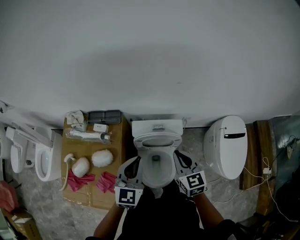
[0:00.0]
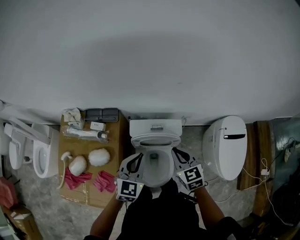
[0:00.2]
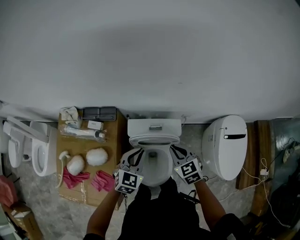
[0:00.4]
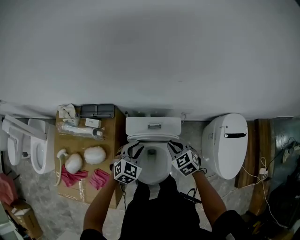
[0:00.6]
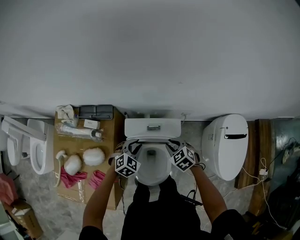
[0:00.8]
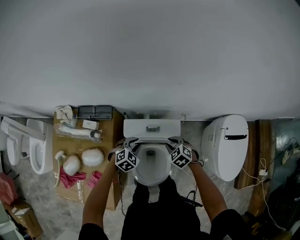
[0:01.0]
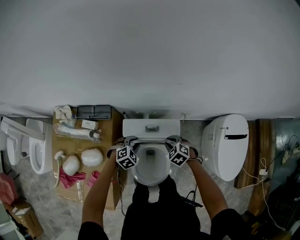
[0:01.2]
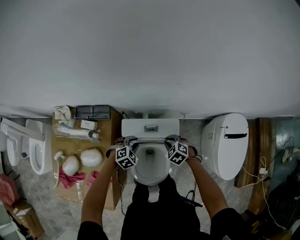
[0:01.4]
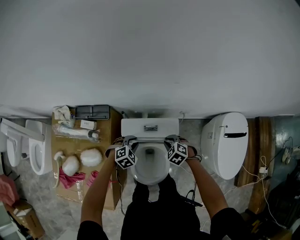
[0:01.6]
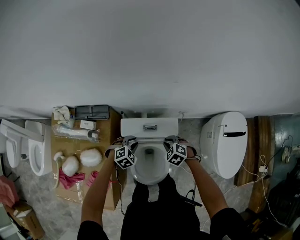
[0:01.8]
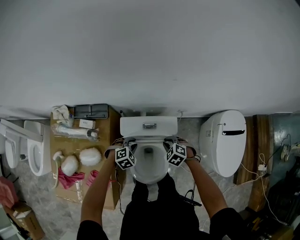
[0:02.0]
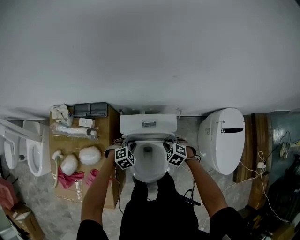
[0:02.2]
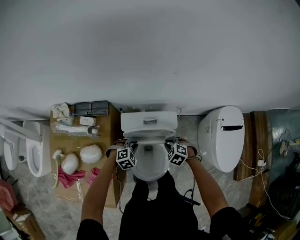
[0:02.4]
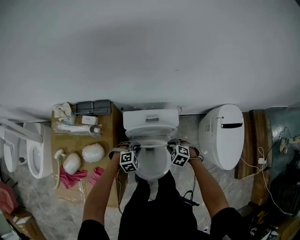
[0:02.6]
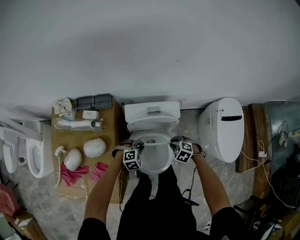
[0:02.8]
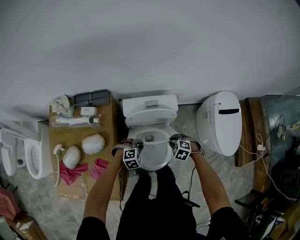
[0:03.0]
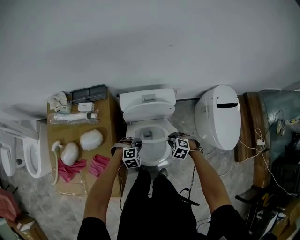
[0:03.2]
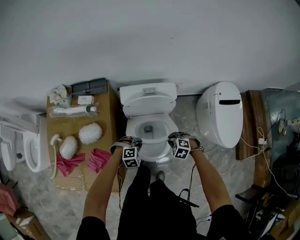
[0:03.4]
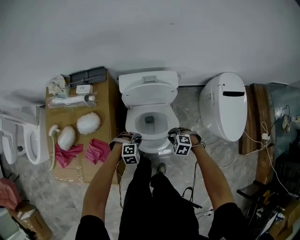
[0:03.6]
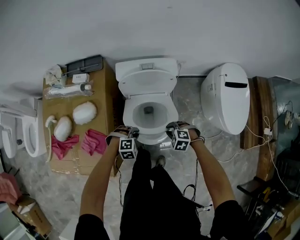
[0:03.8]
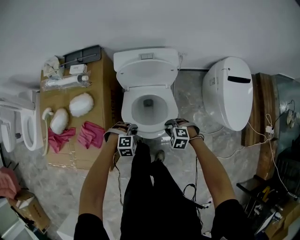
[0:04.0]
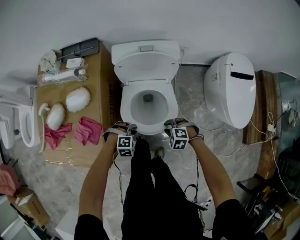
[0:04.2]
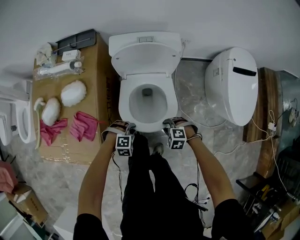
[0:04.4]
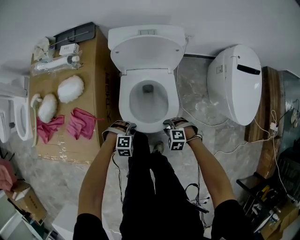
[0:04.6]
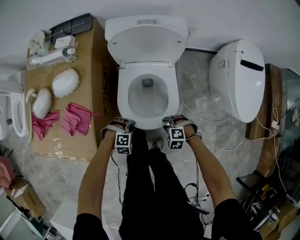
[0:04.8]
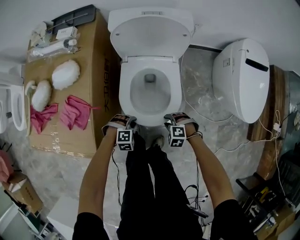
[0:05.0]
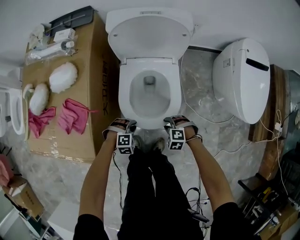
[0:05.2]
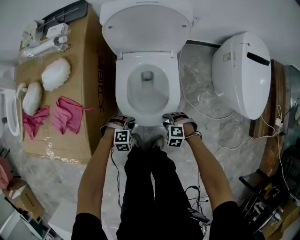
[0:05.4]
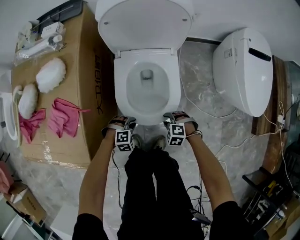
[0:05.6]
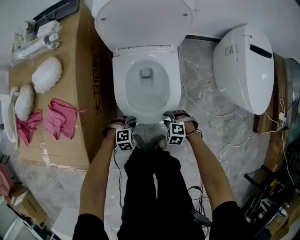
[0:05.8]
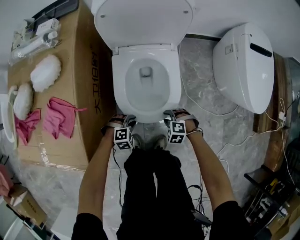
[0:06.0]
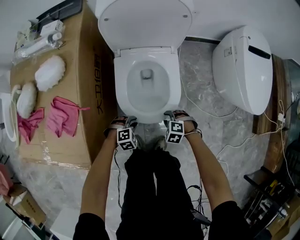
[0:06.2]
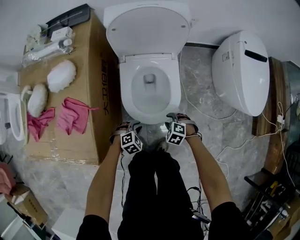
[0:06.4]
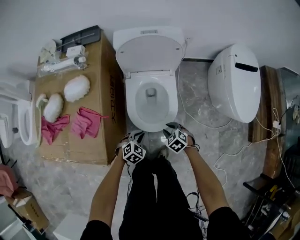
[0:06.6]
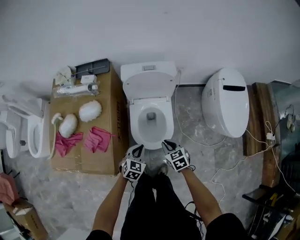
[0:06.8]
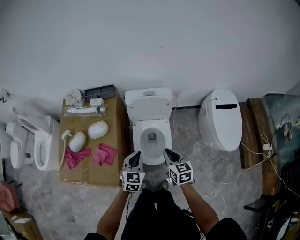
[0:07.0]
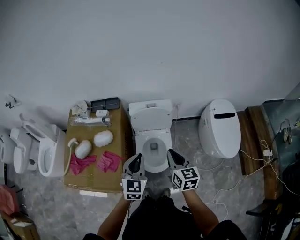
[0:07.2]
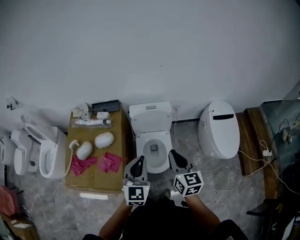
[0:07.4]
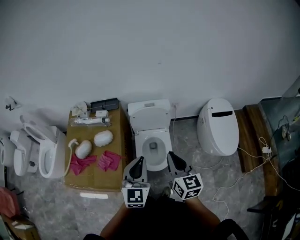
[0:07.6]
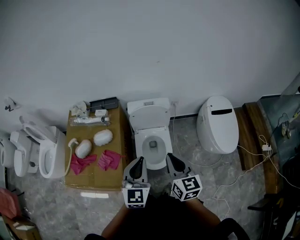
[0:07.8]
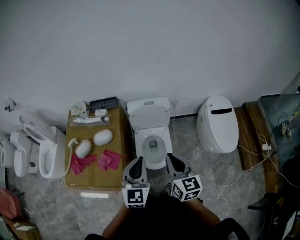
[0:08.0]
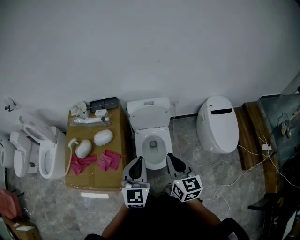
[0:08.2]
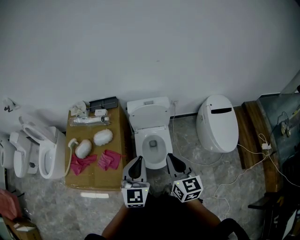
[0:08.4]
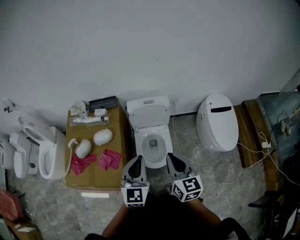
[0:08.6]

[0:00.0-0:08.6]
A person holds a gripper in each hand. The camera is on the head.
0:00.0 to 0:01.4: The left gripper is displaced downward and forward by some 35 cm, tilts its fingers approximately 40 degrees downward, and opens its fingers, while the right gripper is displaced downward by some 25 cm, and tilts its fingers about 40 degrees downward.
0:01.4 to 0:02.8: Both grippers travel together backward, some 15 cm.
0:02.8 to 0:04.4: The right gripper changes place by some 30 cm. Meanwhile the left gripper moves approximately 30 cm.
0:04.4 to 0:05.8: Both grippers move downward, about 20 cm.
0:05.8 to 0:07.2: The two grippers go roughly 70 cm upward. The right gripper tilts its fingers about 50 degrees upward, and closes up, while the left gripper tilts its fingers roughly 50 degrees upward, and closes.
0:07.2 to 0:08.6: The left gripper heads upward, covering approximately 5 cm. Meanwhile the right gripper goes approximately 10 cm upward and backward.

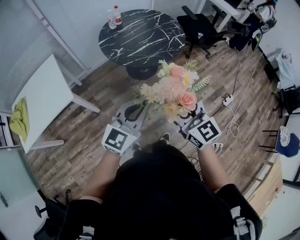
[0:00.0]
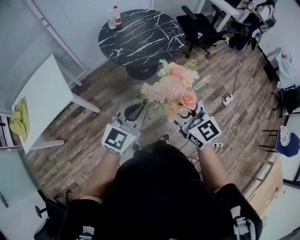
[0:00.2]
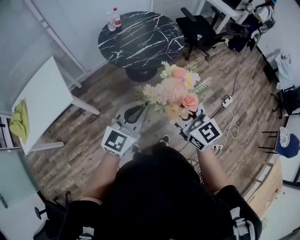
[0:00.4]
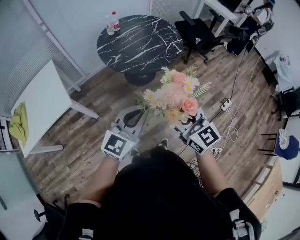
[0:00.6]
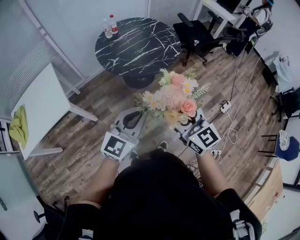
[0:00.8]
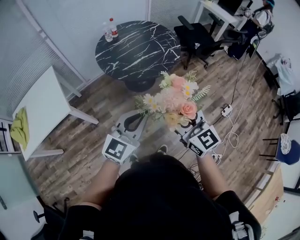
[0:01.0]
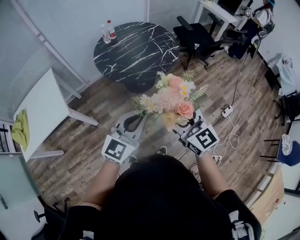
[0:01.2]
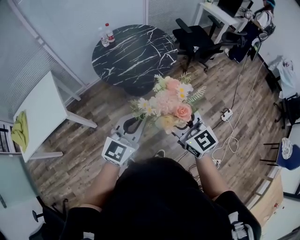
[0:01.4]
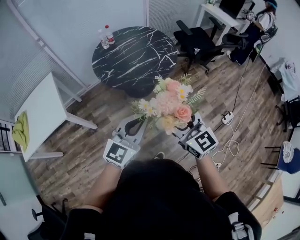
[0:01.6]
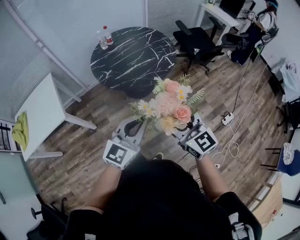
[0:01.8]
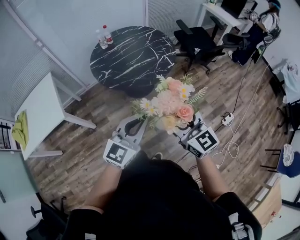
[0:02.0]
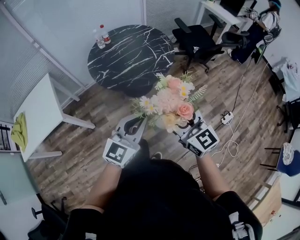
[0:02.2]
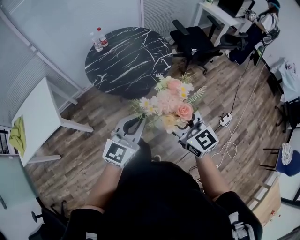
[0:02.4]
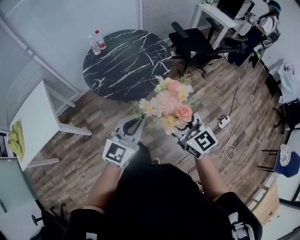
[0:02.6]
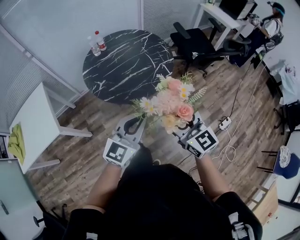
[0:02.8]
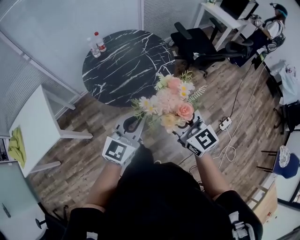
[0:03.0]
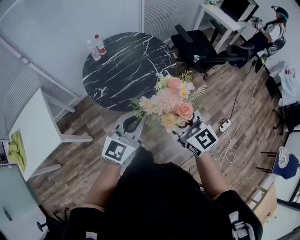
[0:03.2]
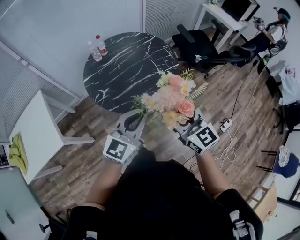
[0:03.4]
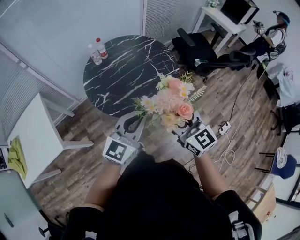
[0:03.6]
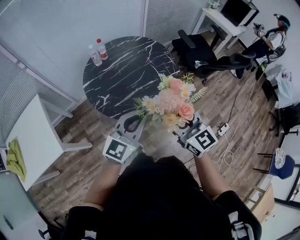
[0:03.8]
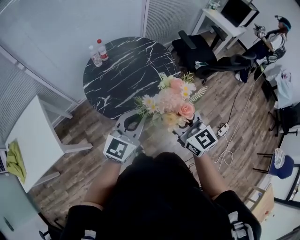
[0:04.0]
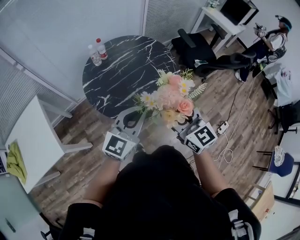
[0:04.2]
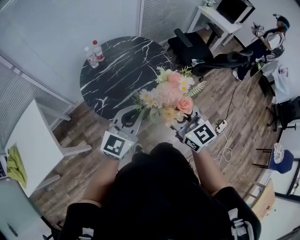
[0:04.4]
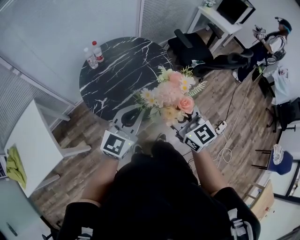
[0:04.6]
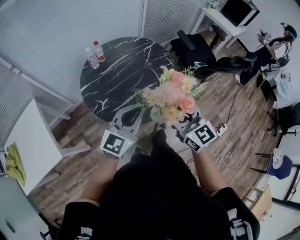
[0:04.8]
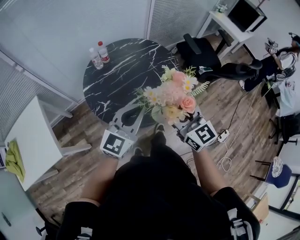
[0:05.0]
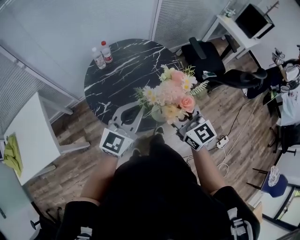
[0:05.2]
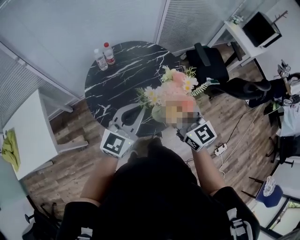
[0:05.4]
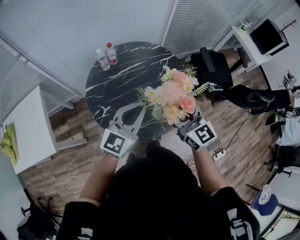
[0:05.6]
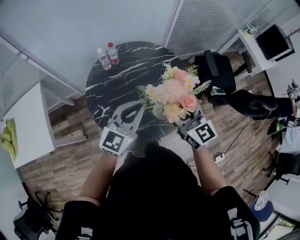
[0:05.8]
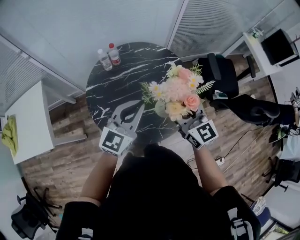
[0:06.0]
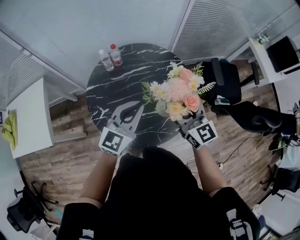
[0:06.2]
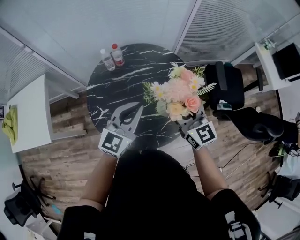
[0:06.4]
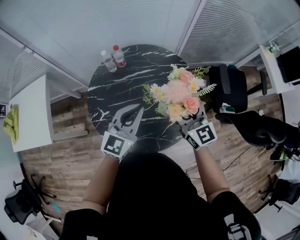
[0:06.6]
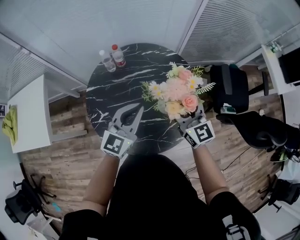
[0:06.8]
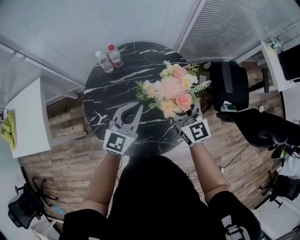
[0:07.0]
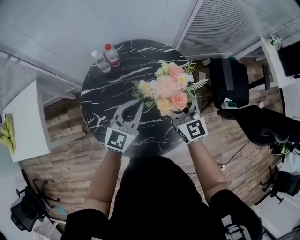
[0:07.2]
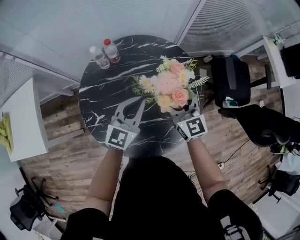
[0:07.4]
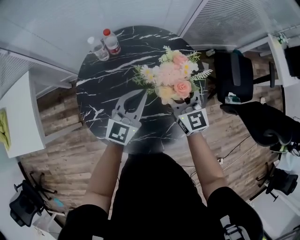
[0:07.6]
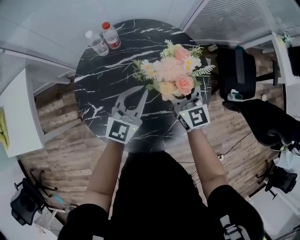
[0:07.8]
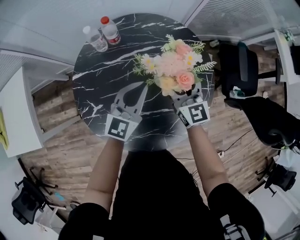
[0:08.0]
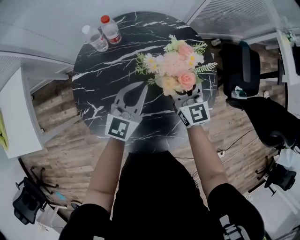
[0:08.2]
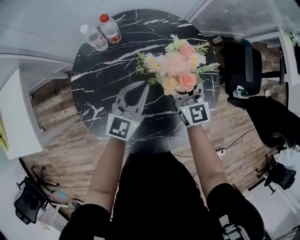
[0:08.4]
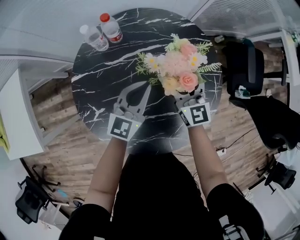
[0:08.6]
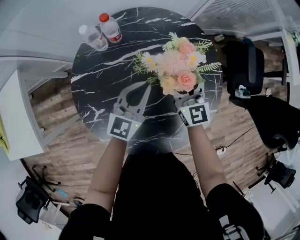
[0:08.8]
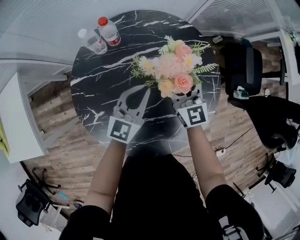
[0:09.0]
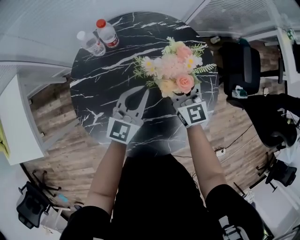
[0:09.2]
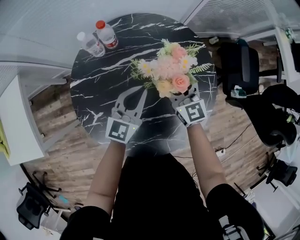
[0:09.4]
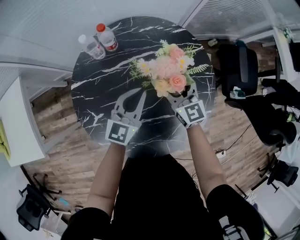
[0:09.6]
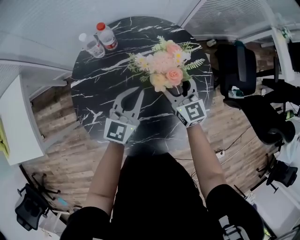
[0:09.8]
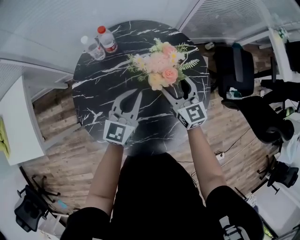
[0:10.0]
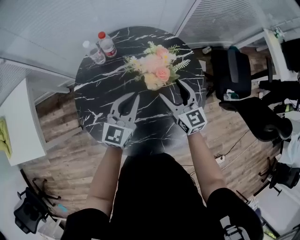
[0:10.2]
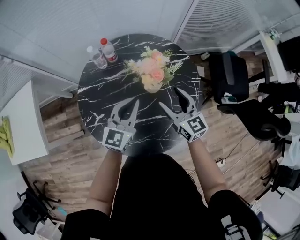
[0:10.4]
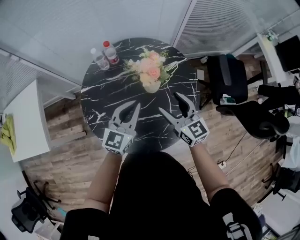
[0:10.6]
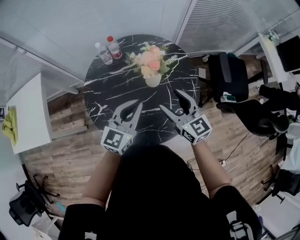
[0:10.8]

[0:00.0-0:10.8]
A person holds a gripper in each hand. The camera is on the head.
0:00.0 to 0:01.6: Both grippers move to the right and forward, some 15 cm.
0:01.6 to 0:03.0: The two grippers go approximately 20 cm forward.
0:03.0 to 0:04.6: Both grippers travel together forward and to the left, about 15 cm.
0:04.6 to 0:06.2: The grippers both shift forward by roughly 25 cm. The left gripper turns by about 20 degrees.
0:06.2 to 0:07.8: Both grippers move downward and forward, about 25 cm.
0:07.8 to 0:09.2: Both grippers travel together downward, roughly 5 cm.
0:09.2 to 0:10.8: The right gripper goes some 25 cm backward and upward. The left gripper shifts roughly 20 cm upward and backward.

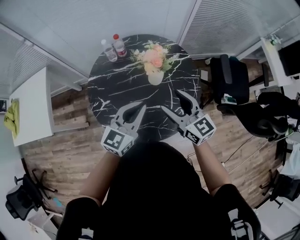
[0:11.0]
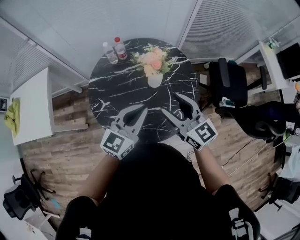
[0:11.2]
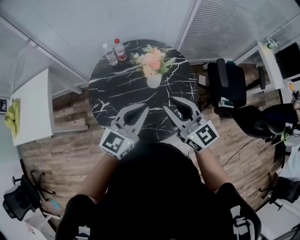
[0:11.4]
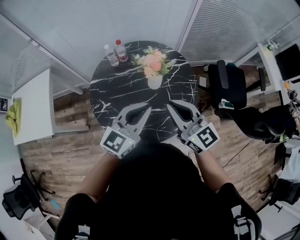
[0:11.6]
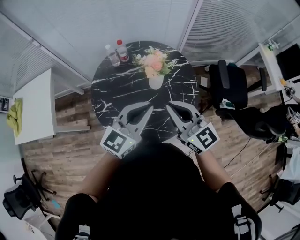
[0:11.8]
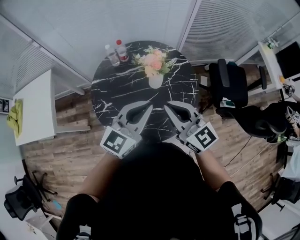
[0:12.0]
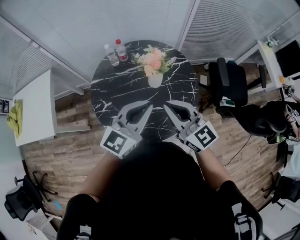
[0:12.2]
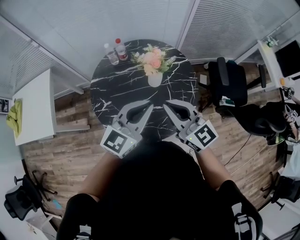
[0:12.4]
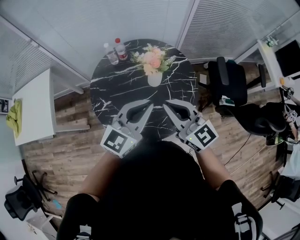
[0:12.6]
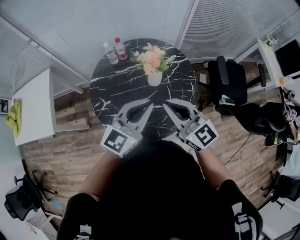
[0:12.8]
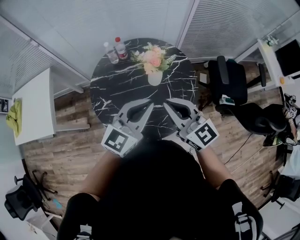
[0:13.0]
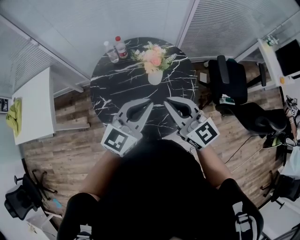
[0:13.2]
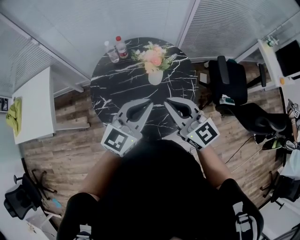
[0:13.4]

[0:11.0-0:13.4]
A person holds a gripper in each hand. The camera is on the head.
0:11.0 to 0:12.2: The grippers both shift upward by some 10 cm. The right gripper closes.
0:12.2 to 0:13.4: The two grippers keep their place.

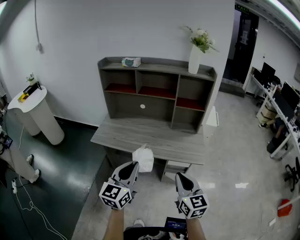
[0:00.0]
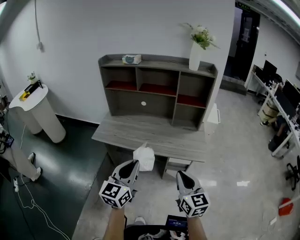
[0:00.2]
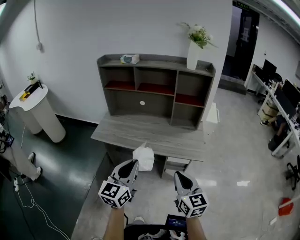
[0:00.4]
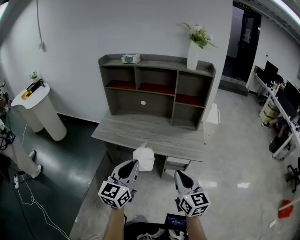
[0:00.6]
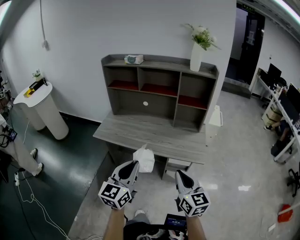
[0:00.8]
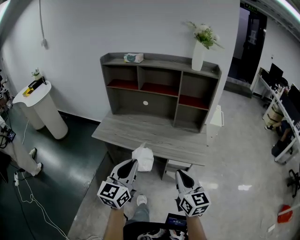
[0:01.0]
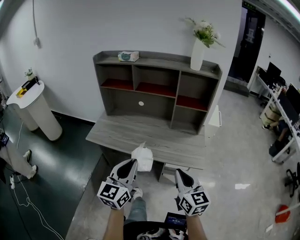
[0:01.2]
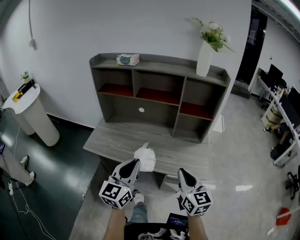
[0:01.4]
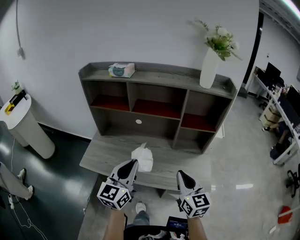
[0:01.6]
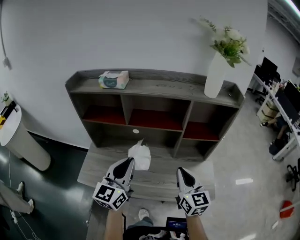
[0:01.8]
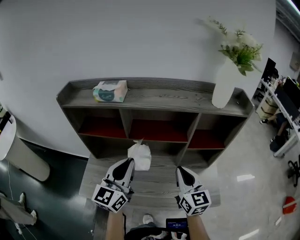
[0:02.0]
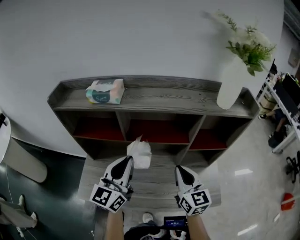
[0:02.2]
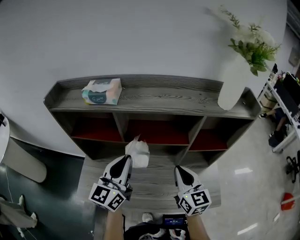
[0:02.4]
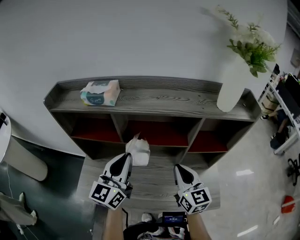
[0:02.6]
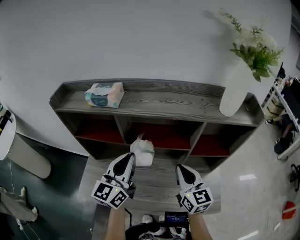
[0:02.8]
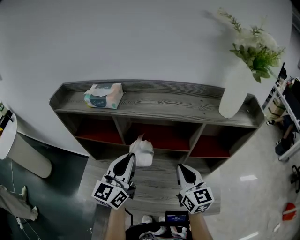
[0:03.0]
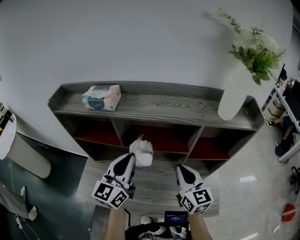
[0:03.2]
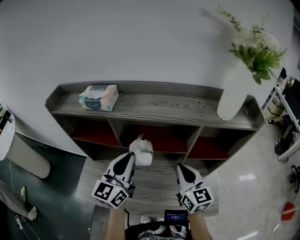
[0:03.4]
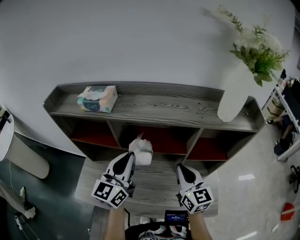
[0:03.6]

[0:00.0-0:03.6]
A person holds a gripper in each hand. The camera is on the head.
0:00.0 to 0:01.8: The grippers both shift forward by approximately 35 cm.
0:01.8 to 0:03.6: The grippers both shift forward by about 15 cm.
